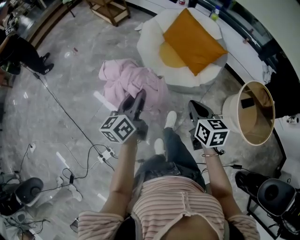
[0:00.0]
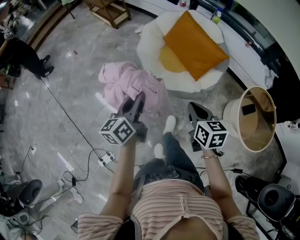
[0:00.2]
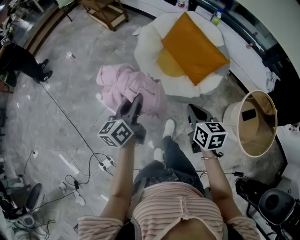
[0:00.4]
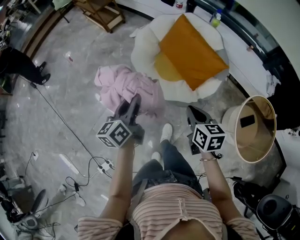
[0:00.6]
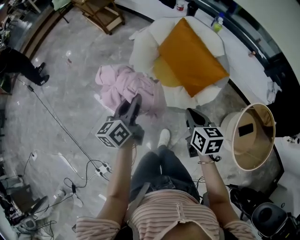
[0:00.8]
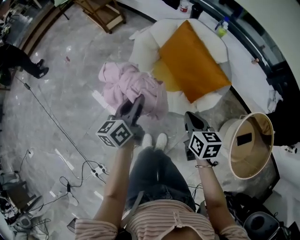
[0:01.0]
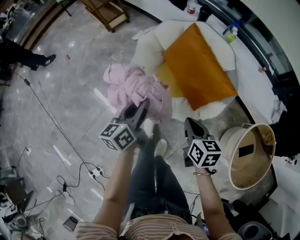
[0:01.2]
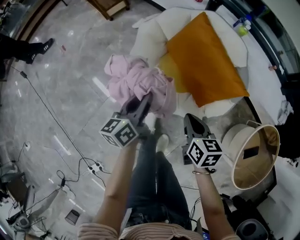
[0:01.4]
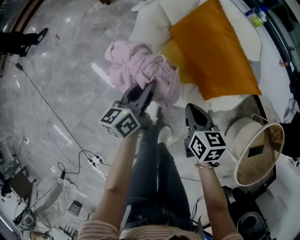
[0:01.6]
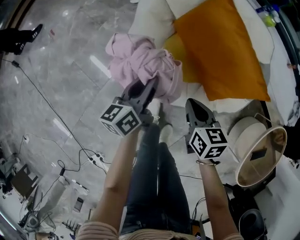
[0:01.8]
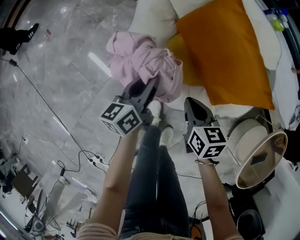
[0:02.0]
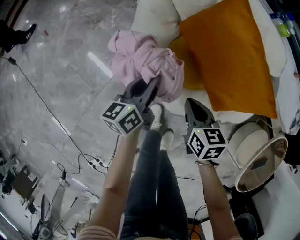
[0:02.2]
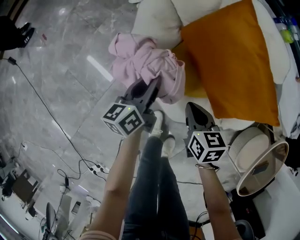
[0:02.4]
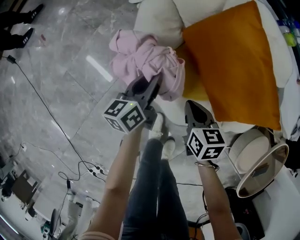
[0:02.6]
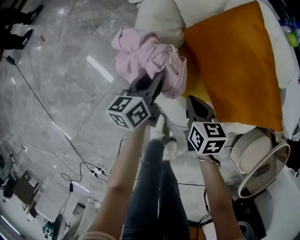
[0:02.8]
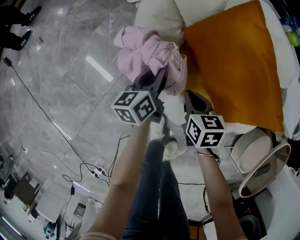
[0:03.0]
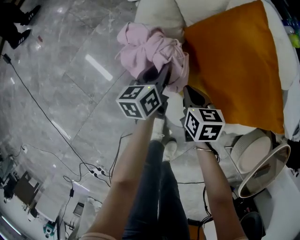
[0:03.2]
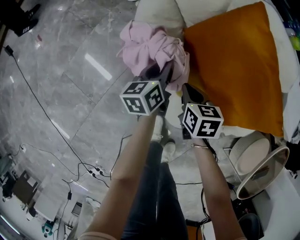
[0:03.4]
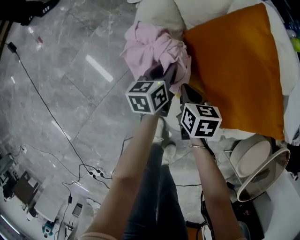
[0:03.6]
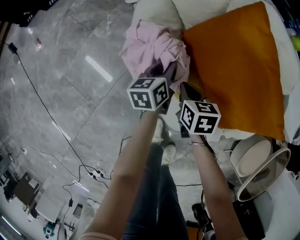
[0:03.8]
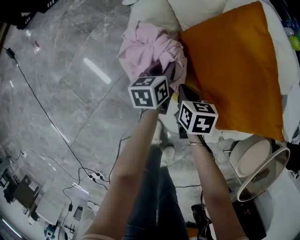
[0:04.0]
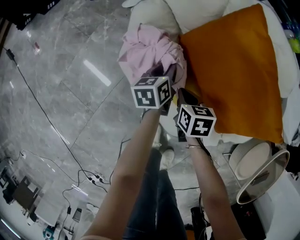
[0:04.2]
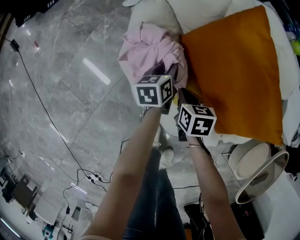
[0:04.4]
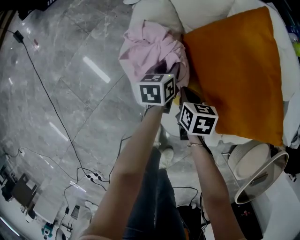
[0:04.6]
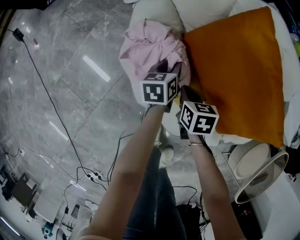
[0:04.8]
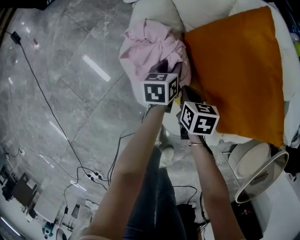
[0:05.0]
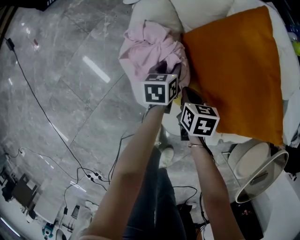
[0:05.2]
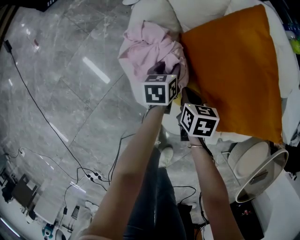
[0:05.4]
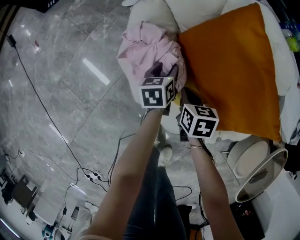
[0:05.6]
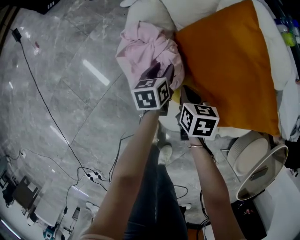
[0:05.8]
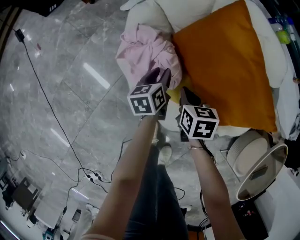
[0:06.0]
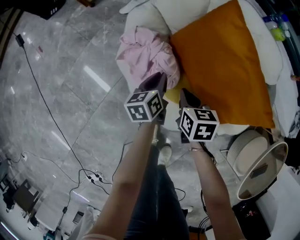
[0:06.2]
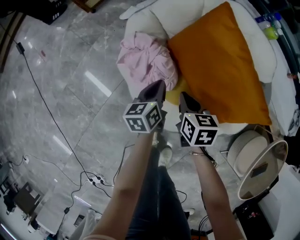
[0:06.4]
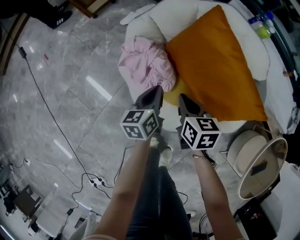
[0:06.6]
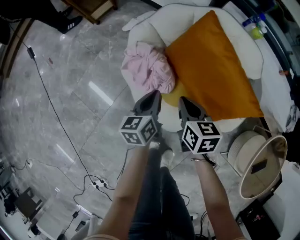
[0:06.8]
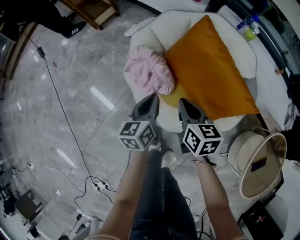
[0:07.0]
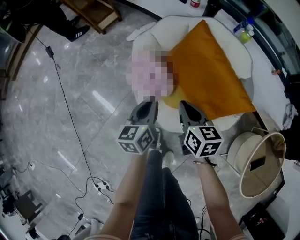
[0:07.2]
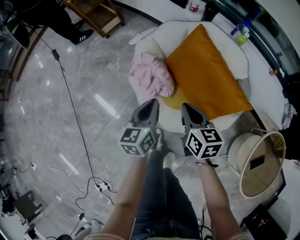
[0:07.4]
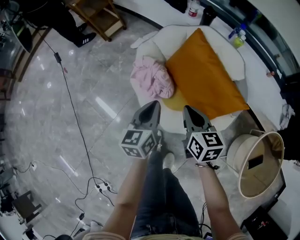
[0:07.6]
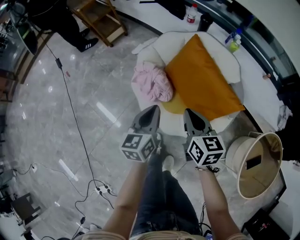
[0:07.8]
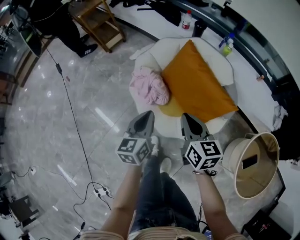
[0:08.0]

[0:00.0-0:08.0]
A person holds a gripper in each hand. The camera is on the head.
0:00.0 to 0:01.6: Both grippers move forward and downward, about 40 cm.
0:01.6 to 0:03.2: Both grippers move downward and forward, approximately 30 cm.
0:03.2 to 0:04.8: The right gripper moves downward, roughly 5 cm; the left gripper is displaced downward, to the right and forward by roughly 10 cm.
0:04.8 to 0:06.4: The right gripper shifts roughly 15 cm upward. Meanwhile the left gripper shifts approximately 15 cm upward and backward.
0:06.4 to 0:08.0: Both grippers travel together upward and backward, some 35 cm. The left gripper changes its angle by some 20 degrees; the right gripper turns by some 20 degrees.

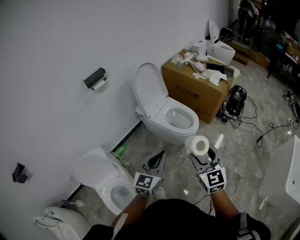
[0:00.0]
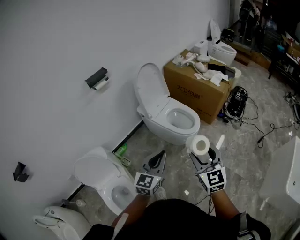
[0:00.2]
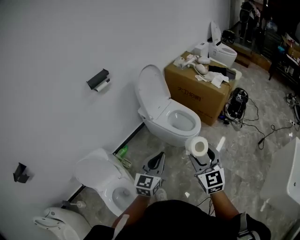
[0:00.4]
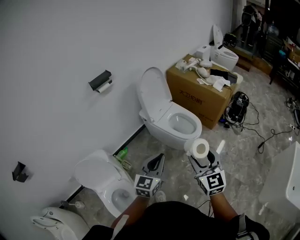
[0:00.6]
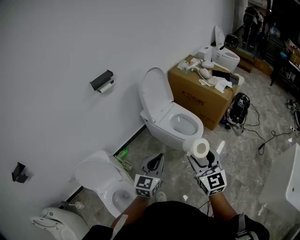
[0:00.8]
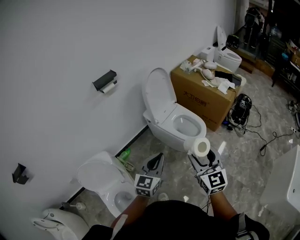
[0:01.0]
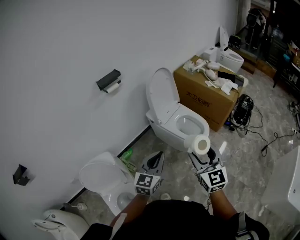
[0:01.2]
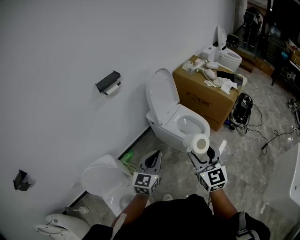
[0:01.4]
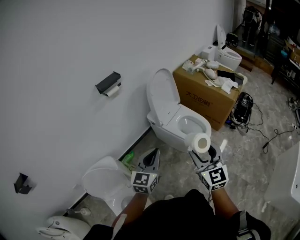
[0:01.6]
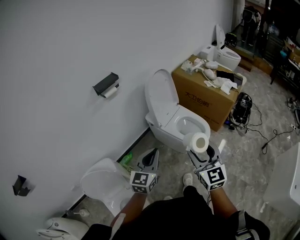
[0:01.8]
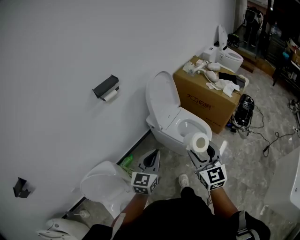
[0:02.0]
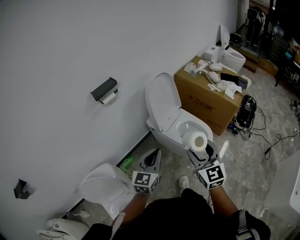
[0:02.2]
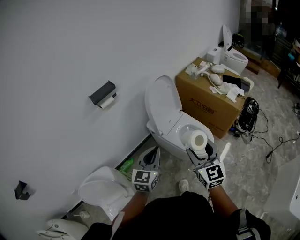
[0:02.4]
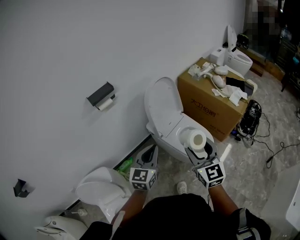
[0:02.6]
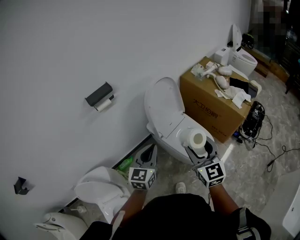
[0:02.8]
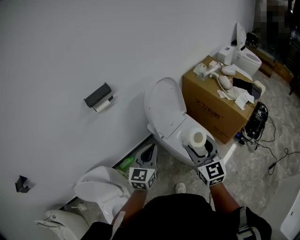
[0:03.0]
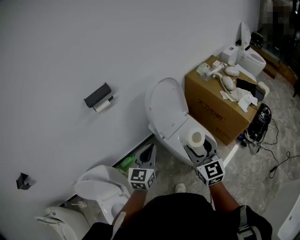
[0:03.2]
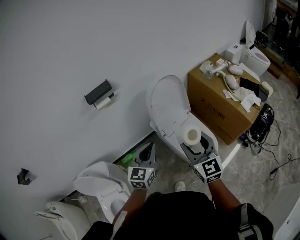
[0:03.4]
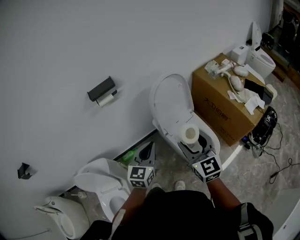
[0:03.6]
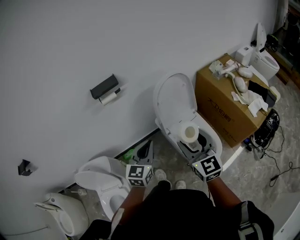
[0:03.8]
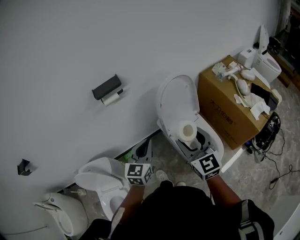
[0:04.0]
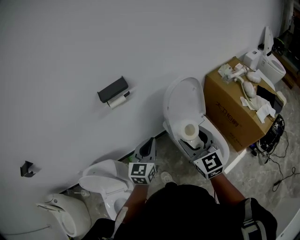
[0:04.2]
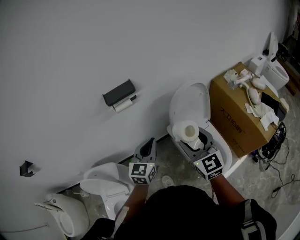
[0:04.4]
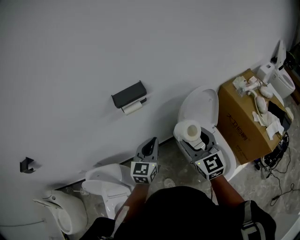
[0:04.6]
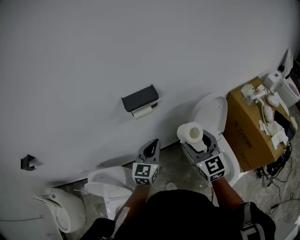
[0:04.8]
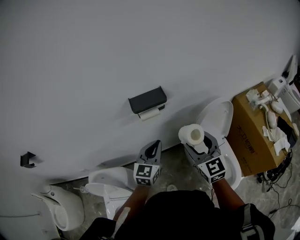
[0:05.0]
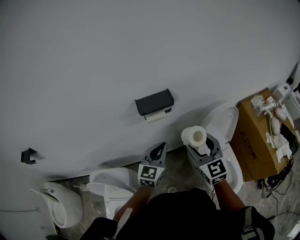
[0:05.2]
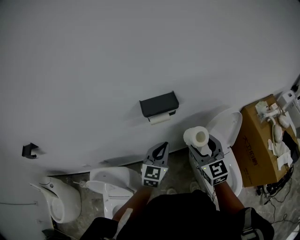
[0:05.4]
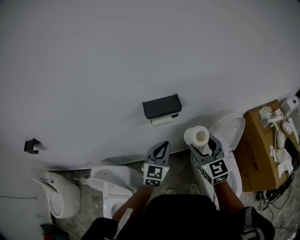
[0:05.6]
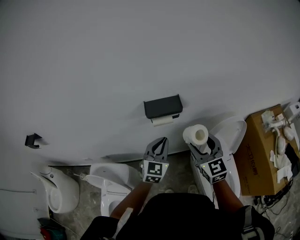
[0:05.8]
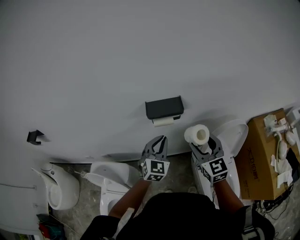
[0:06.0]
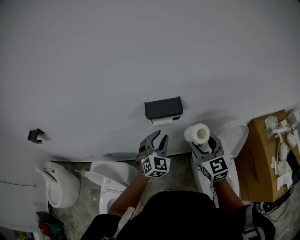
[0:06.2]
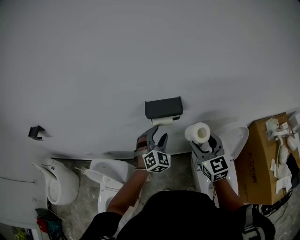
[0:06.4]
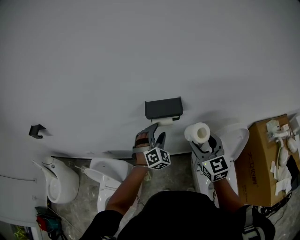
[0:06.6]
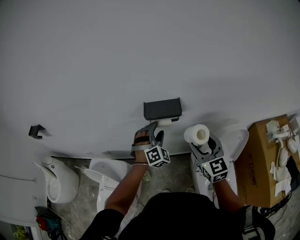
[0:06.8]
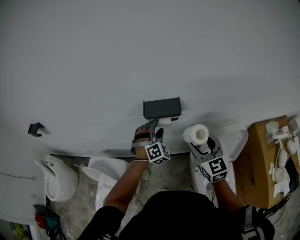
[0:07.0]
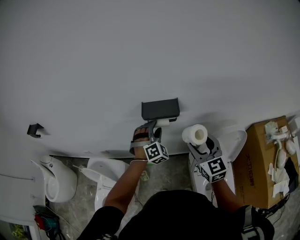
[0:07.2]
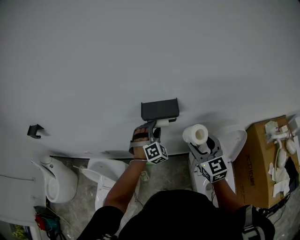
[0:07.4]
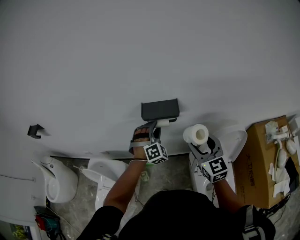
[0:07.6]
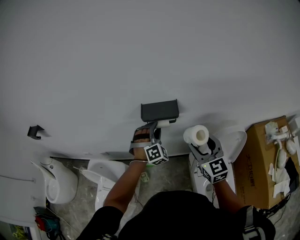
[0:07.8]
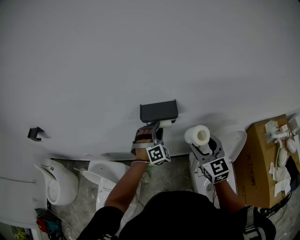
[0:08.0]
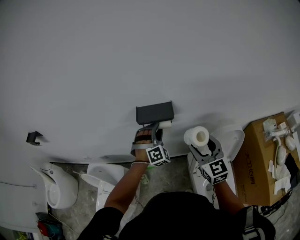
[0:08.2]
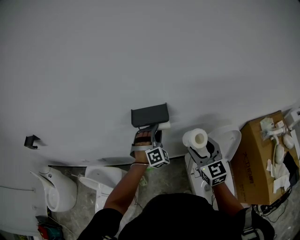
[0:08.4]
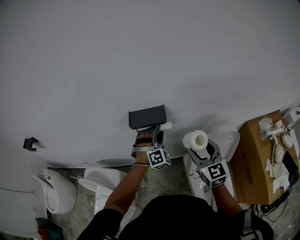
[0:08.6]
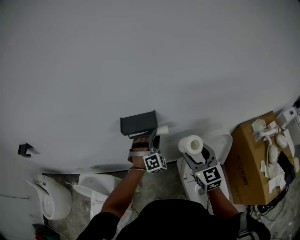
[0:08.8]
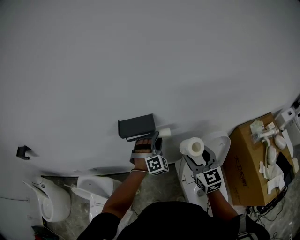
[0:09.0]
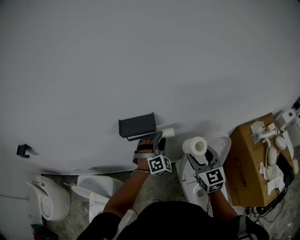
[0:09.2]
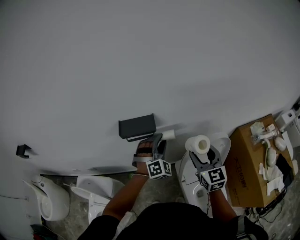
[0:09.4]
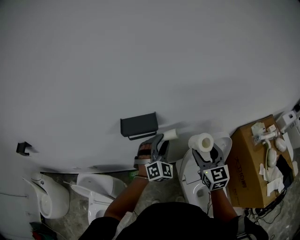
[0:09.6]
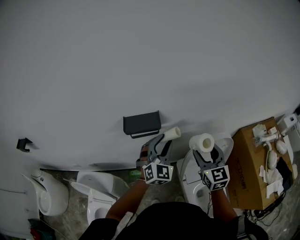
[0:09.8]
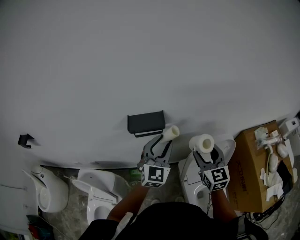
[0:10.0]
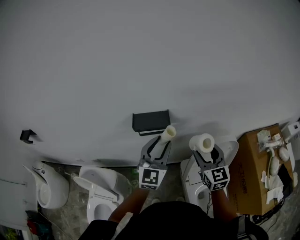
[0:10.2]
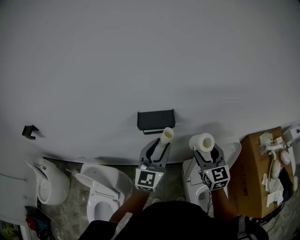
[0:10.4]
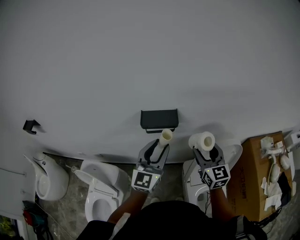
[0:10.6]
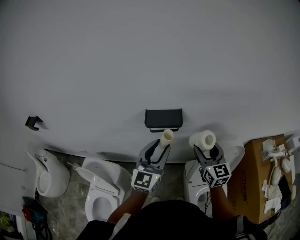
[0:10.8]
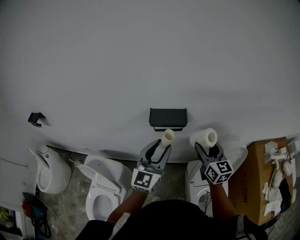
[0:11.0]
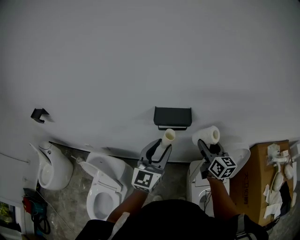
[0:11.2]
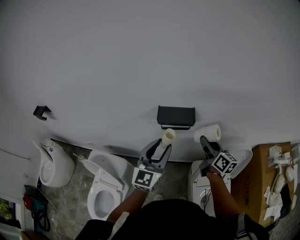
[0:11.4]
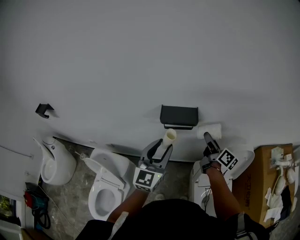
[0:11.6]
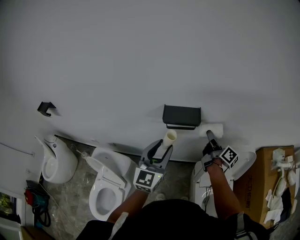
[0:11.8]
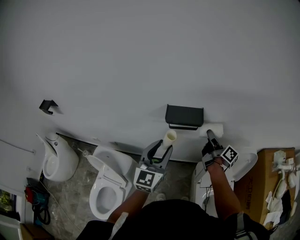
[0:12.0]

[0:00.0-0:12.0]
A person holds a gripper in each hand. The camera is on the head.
0:00.0 to 0:01.6: The two grippers go about 15 cm to the left and forward.
0:01.6 to 0:03.0: The grippers both shift forward by some 25 cm.
0:03.0 to 0:04.4: Both grippers travel together forward and to the left, approximately 20 cm.
0:04.4 to 0:06.0: Both grippers travel together forward and to the left, approximately 20 cm. The left gripper changes its angle by roughly 30 degrees.
0:06.0 to 0:07.6: The left gripper heads forward, covering some 10 cm, rolls clockwise, seen from behind, by about 40 degrees, and opens its fingers.
0:07.6 to 0:09.0: The right gripper goes approximately 10 cm to the right, while the left gripper shifts about 10 cm to the right.
0:09.0 to 0:10.4: The left gripper is displaced upward, backward and to the left by about 15 cm, and rolls counterclockwise, seen from behind, by roughly 60 degrees.
0:10.4 to 0:12.0: The right gripper moves forward and downward, roughly 15 cm, and rolls clockwise, seen from behind, by roughly 80 degrees, while the left gripper moves to the left, roughly 10 cm.

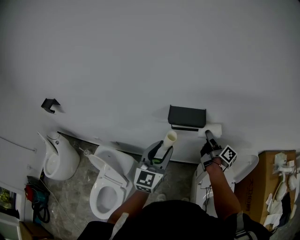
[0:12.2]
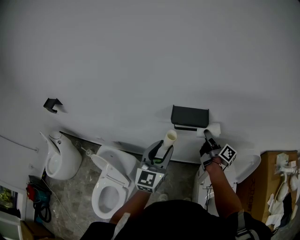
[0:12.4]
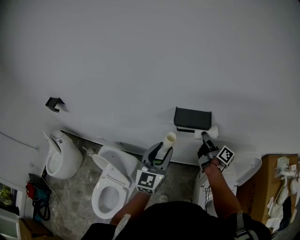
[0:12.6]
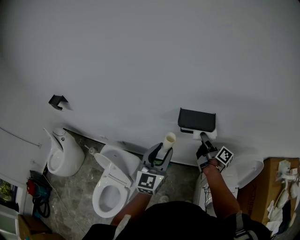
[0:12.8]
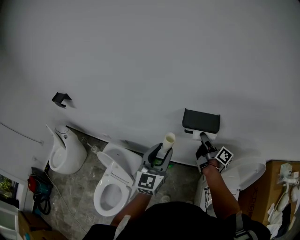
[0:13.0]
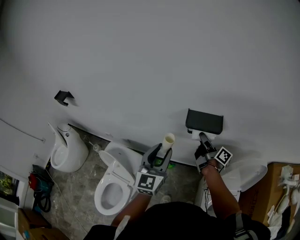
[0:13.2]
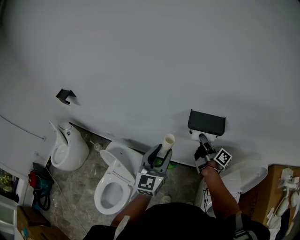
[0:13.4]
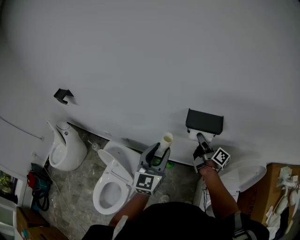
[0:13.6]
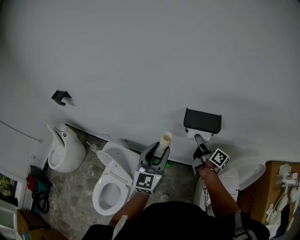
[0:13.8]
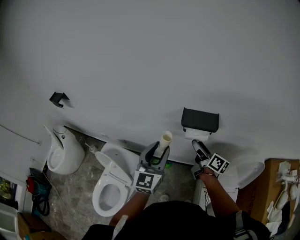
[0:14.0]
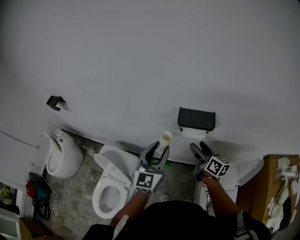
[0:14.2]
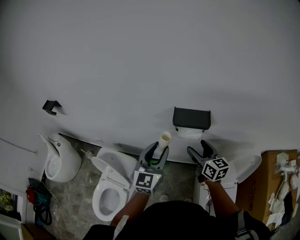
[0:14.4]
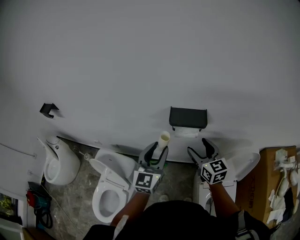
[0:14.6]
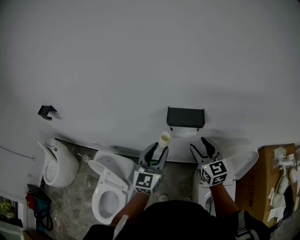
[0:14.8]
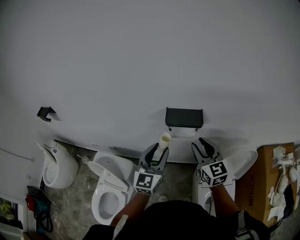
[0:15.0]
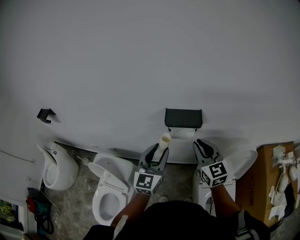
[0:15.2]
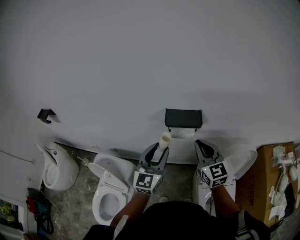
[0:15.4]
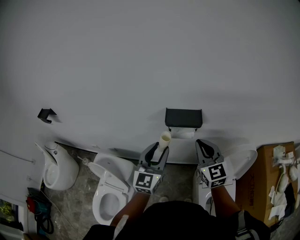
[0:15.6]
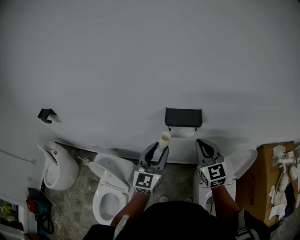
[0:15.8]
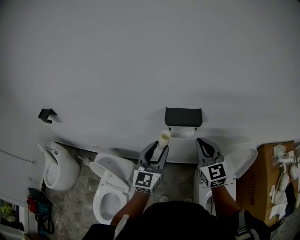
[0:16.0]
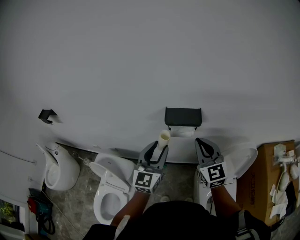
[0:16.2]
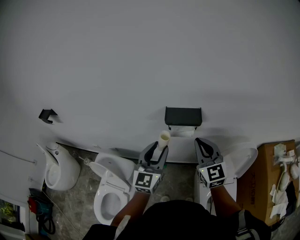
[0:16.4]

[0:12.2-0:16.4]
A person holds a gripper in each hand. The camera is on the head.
0:12.2 to 0:13.6: The right gripper heads to the left, covering some 10 cm. Meanwhile the left gripper shifts roughly 10 cm to the left.
0:13.6 to 0:15.0: The right gripper heads backward and upward, covering some 15 cm, rotates around the line of its fingers by roughly 80 degrees, counterclockwise from behind, and closes; the left gripper is displaced to the right by some 5 cm.
0:15.0 to 0:16.4: The right gripper closes its fingers.
